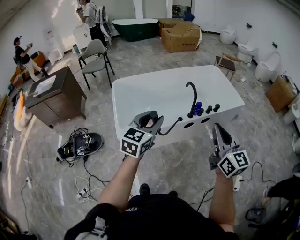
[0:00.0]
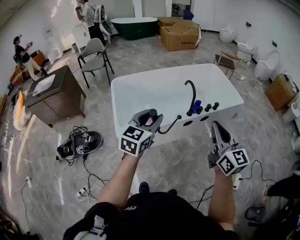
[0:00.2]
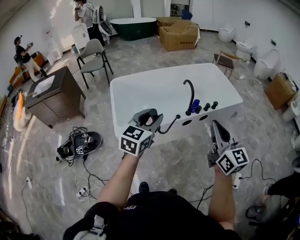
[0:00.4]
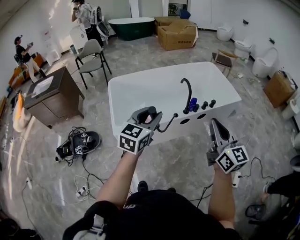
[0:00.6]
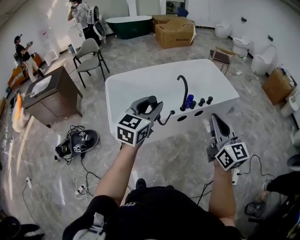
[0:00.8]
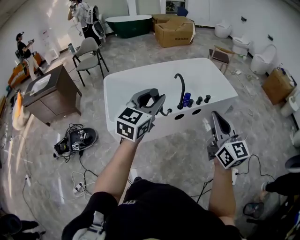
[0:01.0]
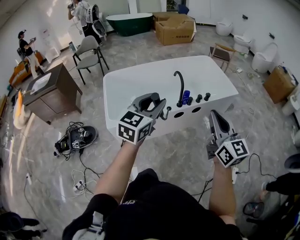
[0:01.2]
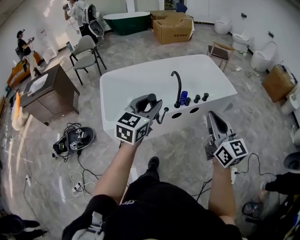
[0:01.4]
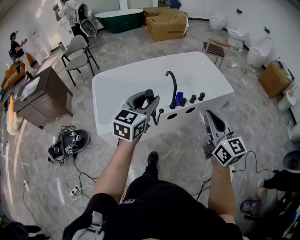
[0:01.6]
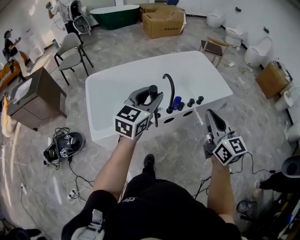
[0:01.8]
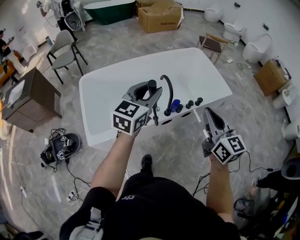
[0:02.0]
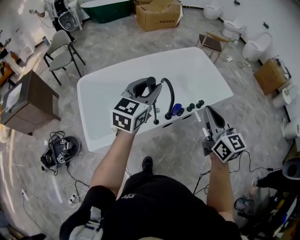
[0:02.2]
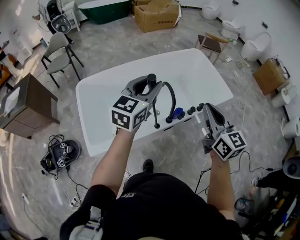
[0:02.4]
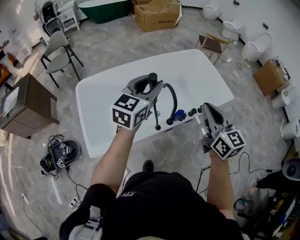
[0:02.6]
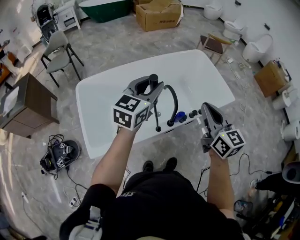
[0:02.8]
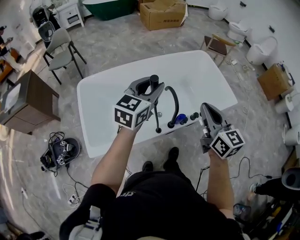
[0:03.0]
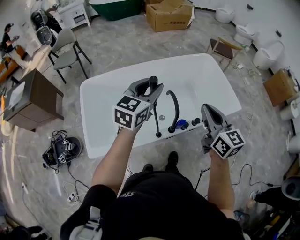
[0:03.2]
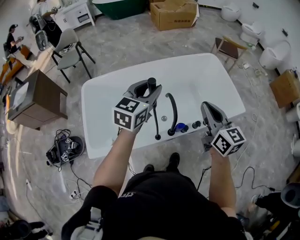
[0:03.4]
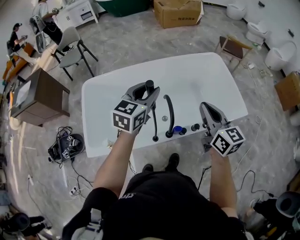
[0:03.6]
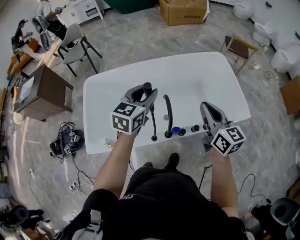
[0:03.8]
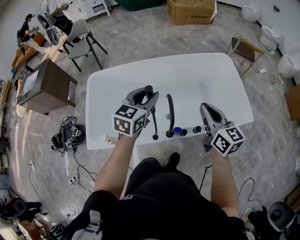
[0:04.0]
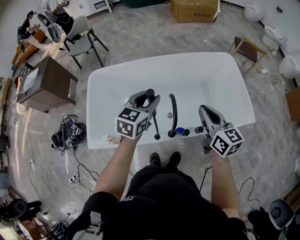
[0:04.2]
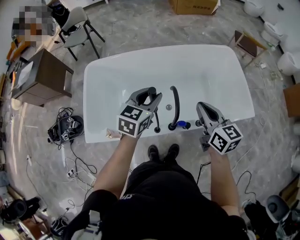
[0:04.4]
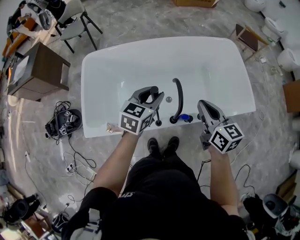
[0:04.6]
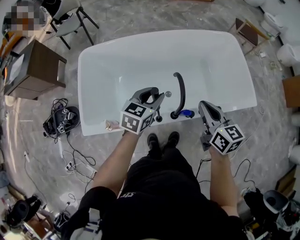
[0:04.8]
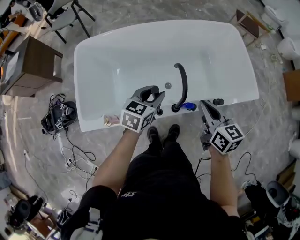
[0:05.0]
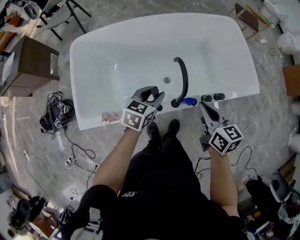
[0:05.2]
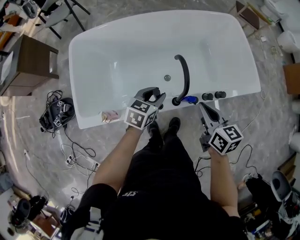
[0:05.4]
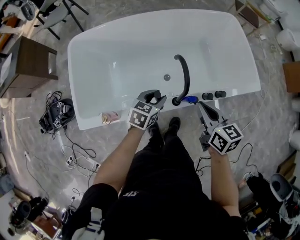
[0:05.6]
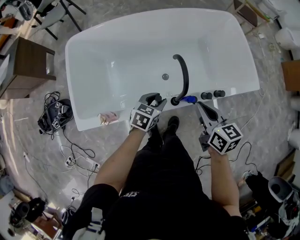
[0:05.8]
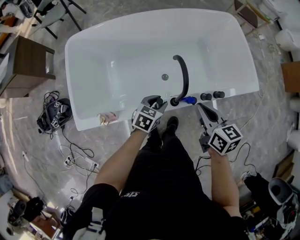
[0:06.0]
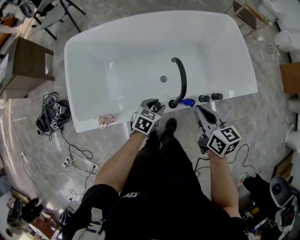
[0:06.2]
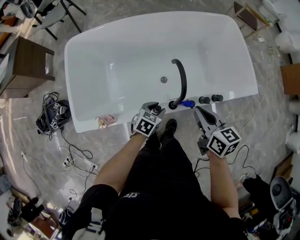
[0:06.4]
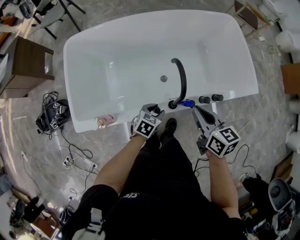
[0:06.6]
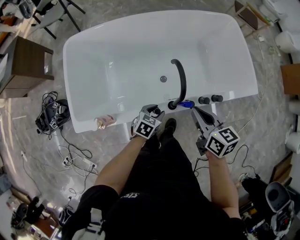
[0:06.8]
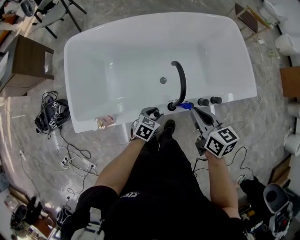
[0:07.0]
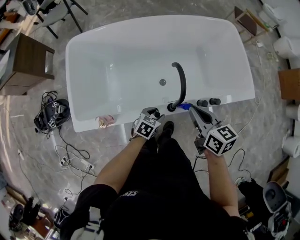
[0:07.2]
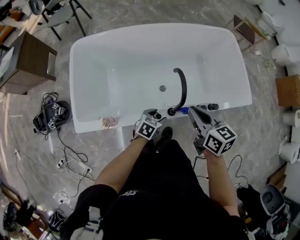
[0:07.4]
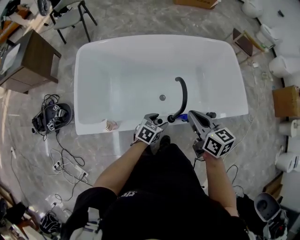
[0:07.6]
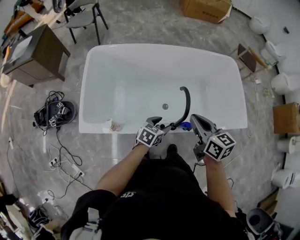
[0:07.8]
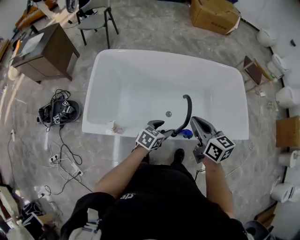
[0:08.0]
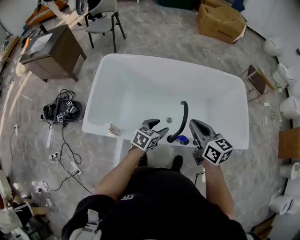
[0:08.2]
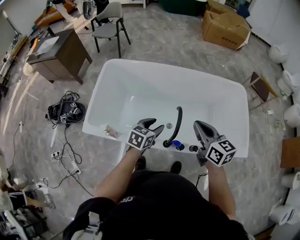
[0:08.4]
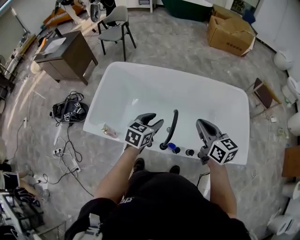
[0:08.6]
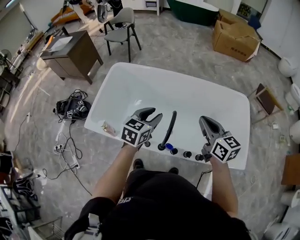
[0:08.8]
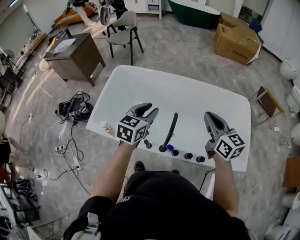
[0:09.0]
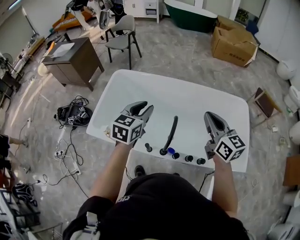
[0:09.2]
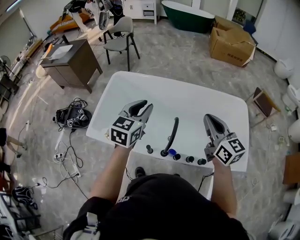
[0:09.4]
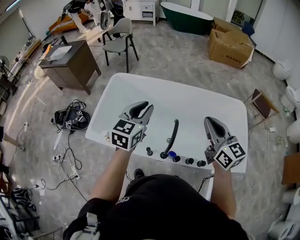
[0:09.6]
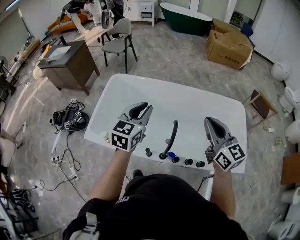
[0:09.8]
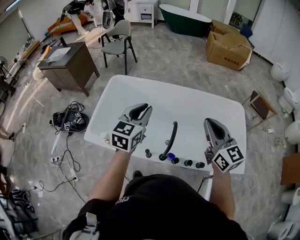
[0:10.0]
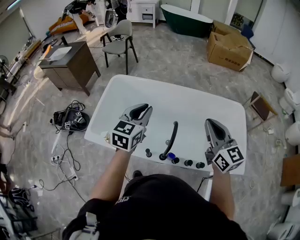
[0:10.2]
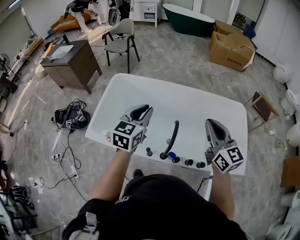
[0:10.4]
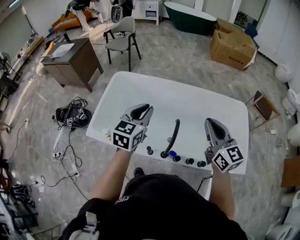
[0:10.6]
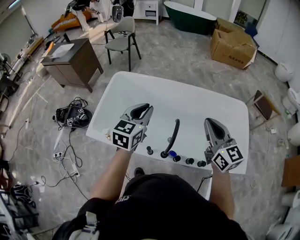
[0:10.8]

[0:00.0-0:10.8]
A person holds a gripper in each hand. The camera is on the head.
0:00.0 to 0:01.6: Both grippers move to the right and forward, some 15 cm.
0:01.6 to 0:03.0: Both grippers move forward, approximately 30 cm.
0:03.0 to 0:04.6: The left gripper shifts approximately 20 cm downward and forward, and swivels about 20 degrees; the right gripper goes about 20 cm forward and downward, and changes its angle by approximately 20 degrees.
0:04.6 to 0:06.2: The right gripper moves downward and backward, approximately 15 cm, while the left gripper travels downward by approximately 25 cm, and changes its angle by roughly 20 degrees.
0:06.2 to 0:07.8: The left gripper travels upward by approximately 10 cm, and opens. The right gripper goes roughly 10 cm upward and to the left.
0:07.8 to 0:09.2: The right gripper moves roughly 25 cm, and turns by about 20 degrees. Meanwhile the left gripper goes approximately 30 cm upward, swivels approximately 40 degrees, and closes its fingers.
0:09.2 to 0:10.8: The grippers stay close to where they were, moving slightly.

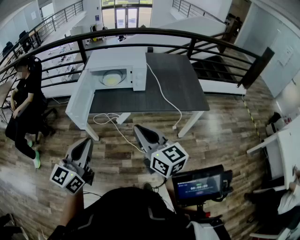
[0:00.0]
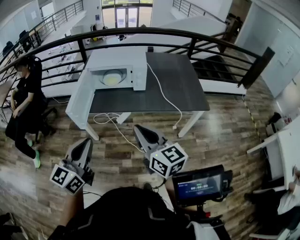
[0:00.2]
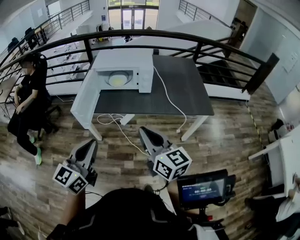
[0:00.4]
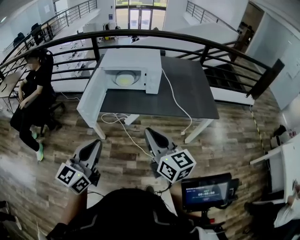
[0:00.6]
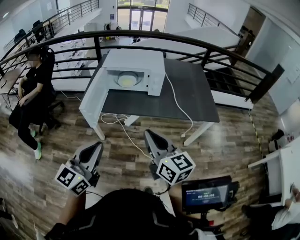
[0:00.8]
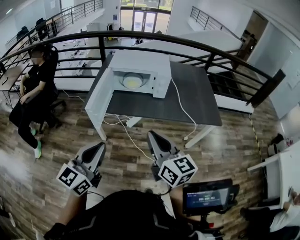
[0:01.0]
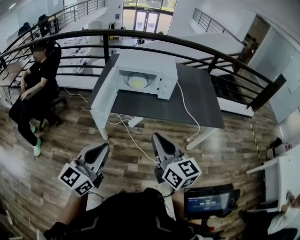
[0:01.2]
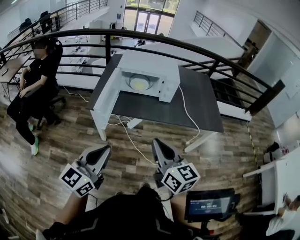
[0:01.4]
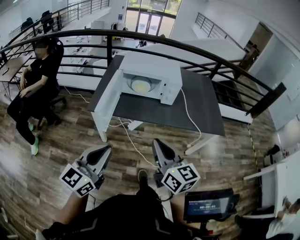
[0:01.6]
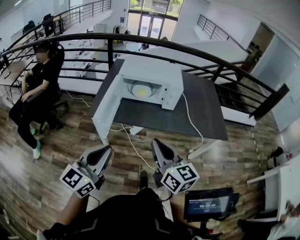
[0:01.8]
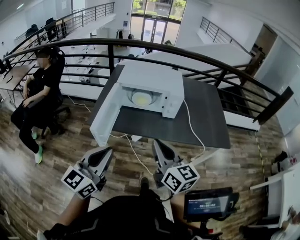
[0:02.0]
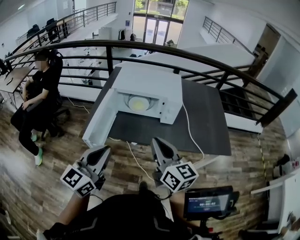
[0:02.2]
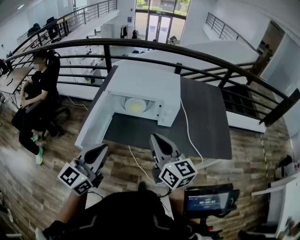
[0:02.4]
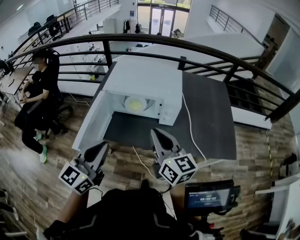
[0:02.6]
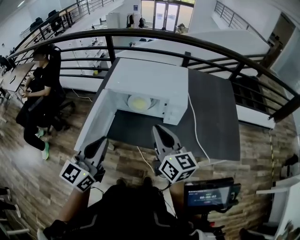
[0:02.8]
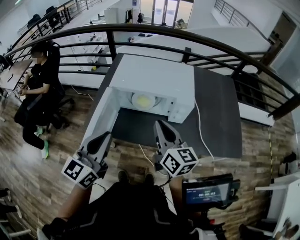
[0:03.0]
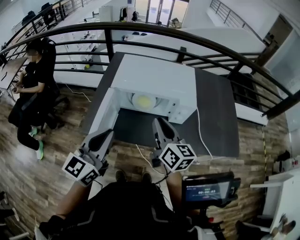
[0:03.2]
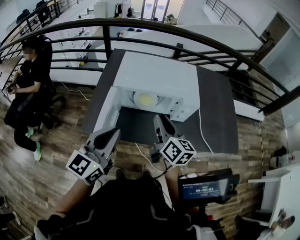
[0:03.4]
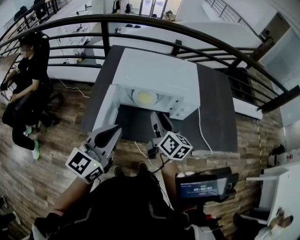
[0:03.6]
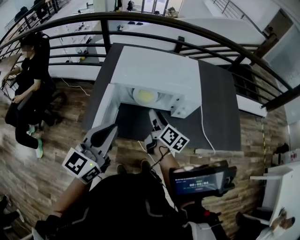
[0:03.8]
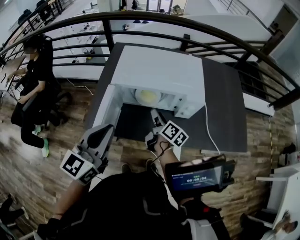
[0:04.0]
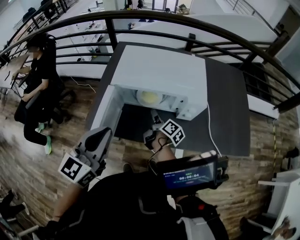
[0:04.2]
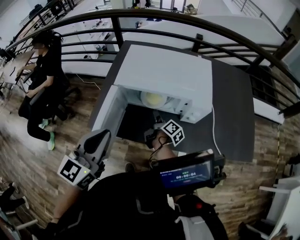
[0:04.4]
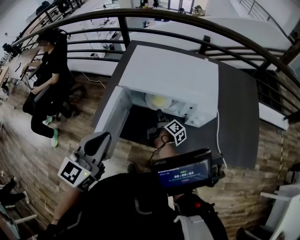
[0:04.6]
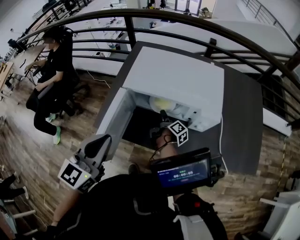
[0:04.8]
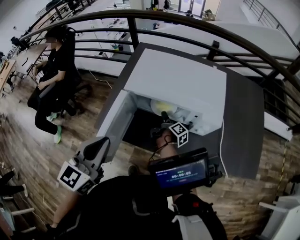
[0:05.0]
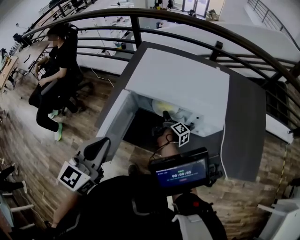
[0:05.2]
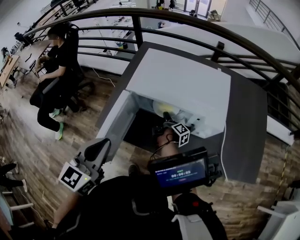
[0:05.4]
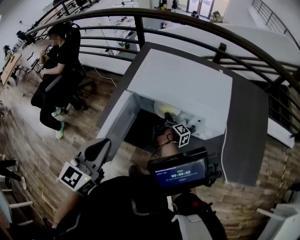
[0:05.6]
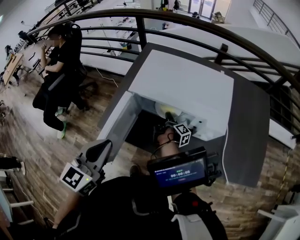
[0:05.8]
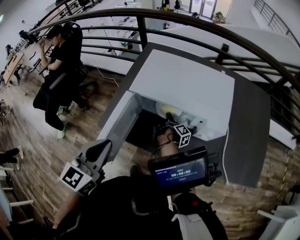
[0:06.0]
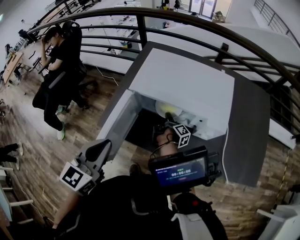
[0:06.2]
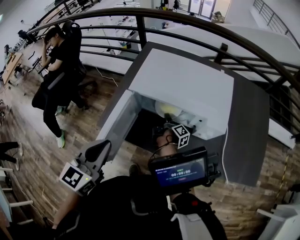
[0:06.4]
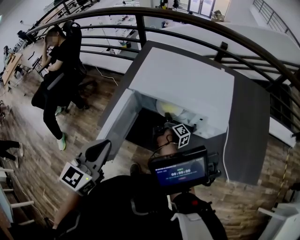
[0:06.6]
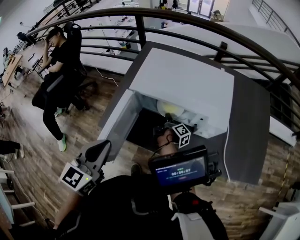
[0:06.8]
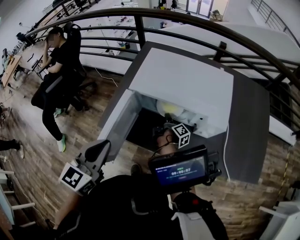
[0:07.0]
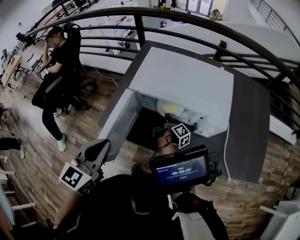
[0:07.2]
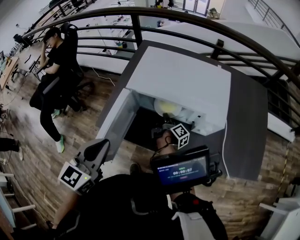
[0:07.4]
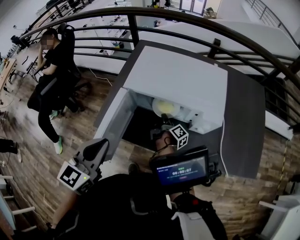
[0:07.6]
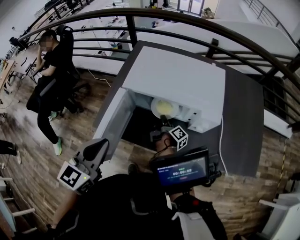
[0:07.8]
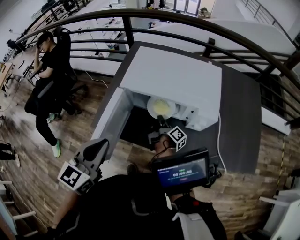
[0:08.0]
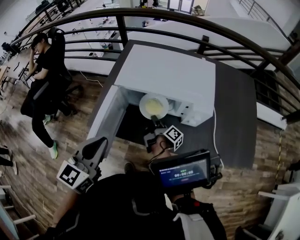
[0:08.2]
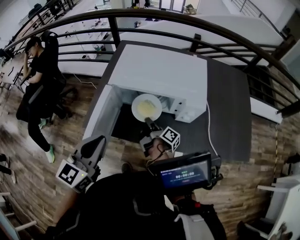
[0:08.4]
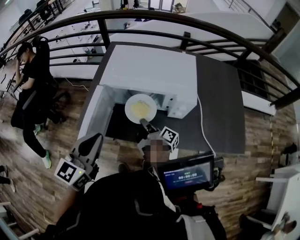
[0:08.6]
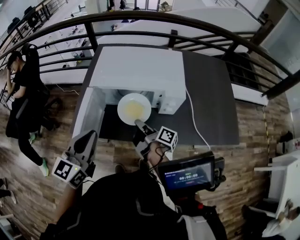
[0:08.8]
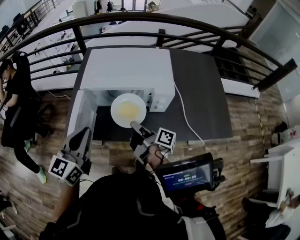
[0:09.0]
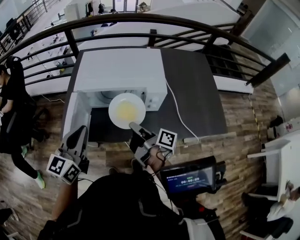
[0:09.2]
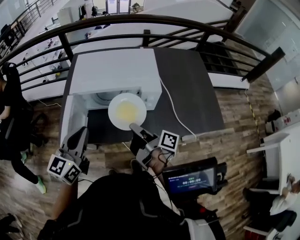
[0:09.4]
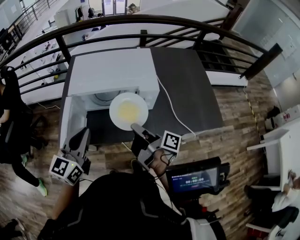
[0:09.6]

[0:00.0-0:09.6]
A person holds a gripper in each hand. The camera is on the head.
0:00.0 to 0:01.6: The left gripper changes place by roughly 10 cm.
0:01.6 to 0:03.2: The left gripper ends up about 30 cm from where it was.
0:03.2 to 0:04.8: The left gripper shifts by approximately 5 cm.
0:08.0 to 0:09.6: The left gripper shifts by approximately 10 cm.

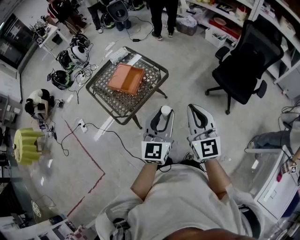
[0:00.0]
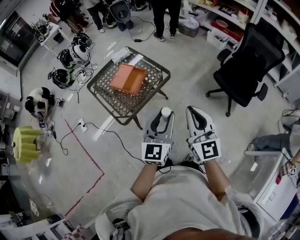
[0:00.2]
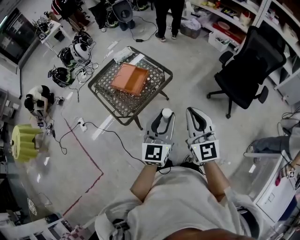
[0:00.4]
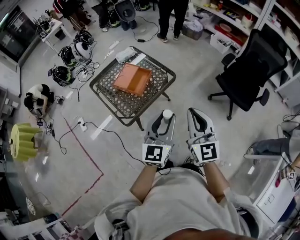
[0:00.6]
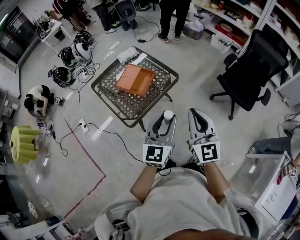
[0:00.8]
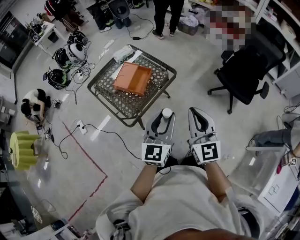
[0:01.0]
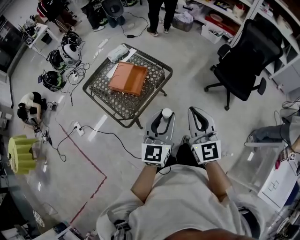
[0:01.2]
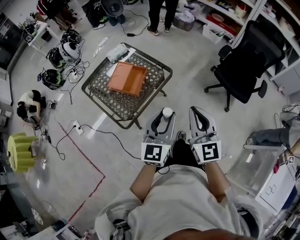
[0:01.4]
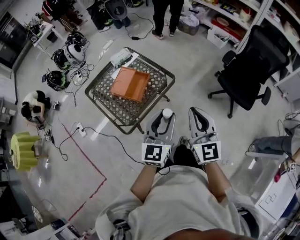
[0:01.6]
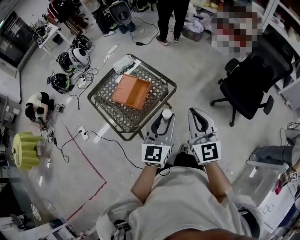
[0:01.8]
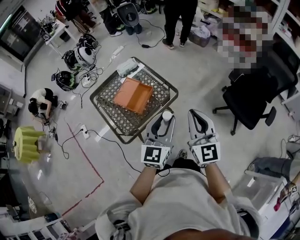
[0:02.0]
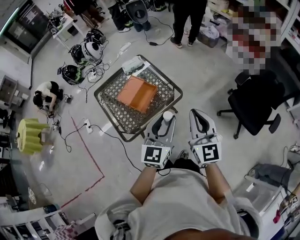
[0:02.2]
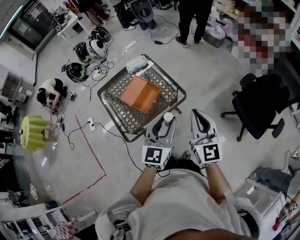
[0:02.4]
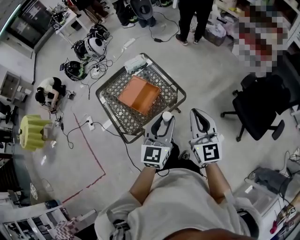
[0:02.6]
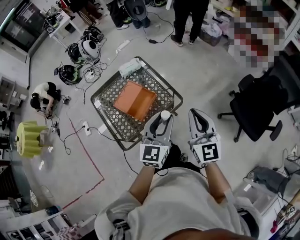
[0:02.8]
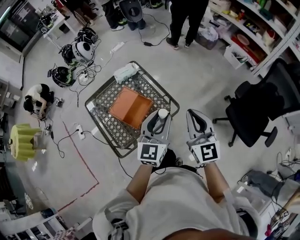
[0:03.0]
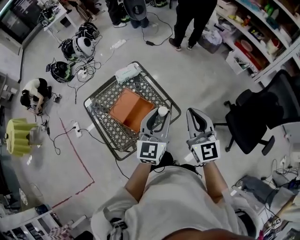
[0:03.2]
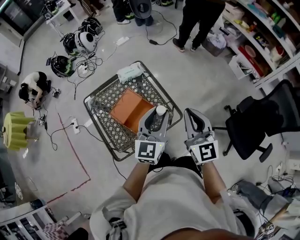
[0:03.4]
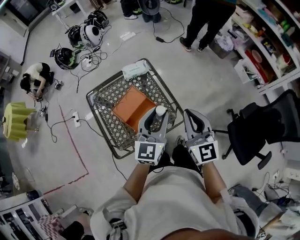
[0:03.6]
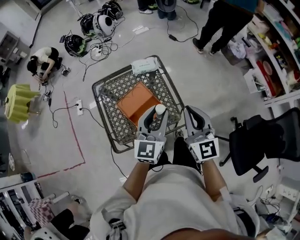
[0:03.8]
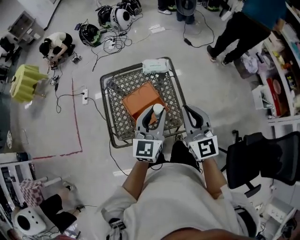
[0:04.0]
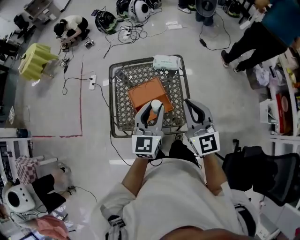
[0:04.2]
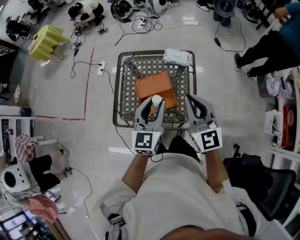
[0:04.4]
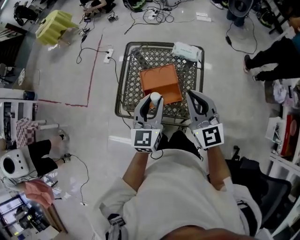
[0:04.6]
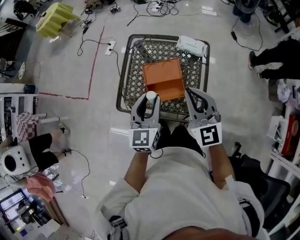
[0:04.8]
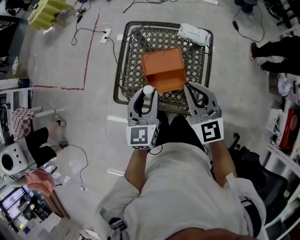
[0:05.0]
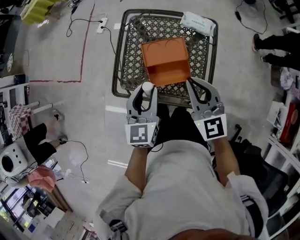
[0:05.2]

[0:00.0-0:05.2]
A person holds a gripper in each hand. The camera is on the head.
0:00.0 to 0:01.8: The grippers both shift forward and to the left by about 15 cm.
0:01.8 to 0:03.4: The grippers both shift forward by some 30 cm.
0:03.4 to 0:05.2: The right gripper changes place by some 25 cm, and turns by approximately 50 degrees. The left gripper ends up roughly 20 cm from where it was, and rotates about 60 degrees.
